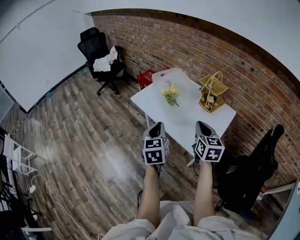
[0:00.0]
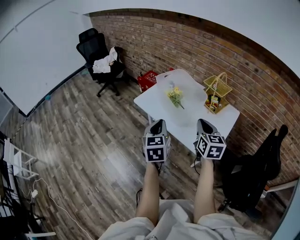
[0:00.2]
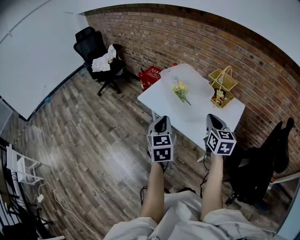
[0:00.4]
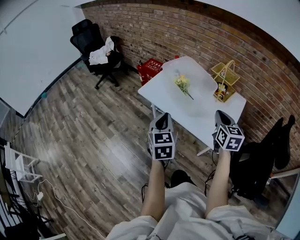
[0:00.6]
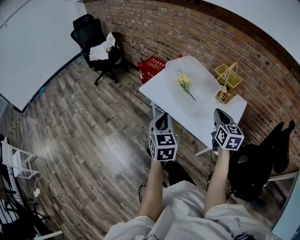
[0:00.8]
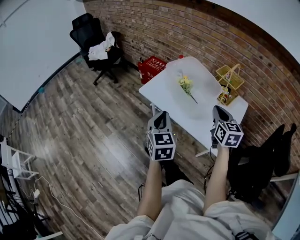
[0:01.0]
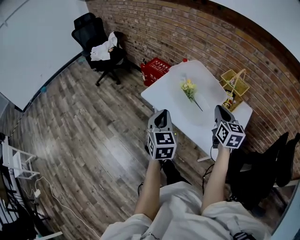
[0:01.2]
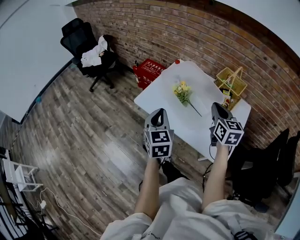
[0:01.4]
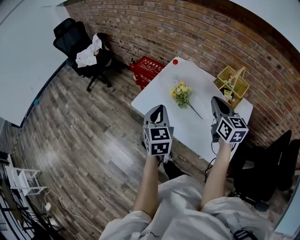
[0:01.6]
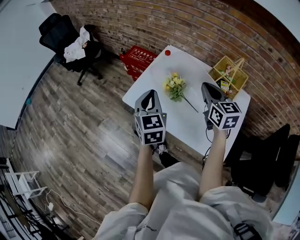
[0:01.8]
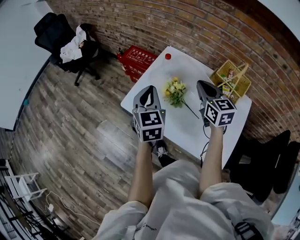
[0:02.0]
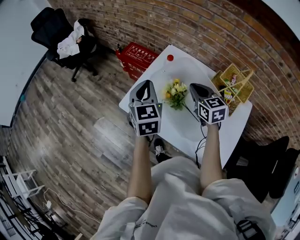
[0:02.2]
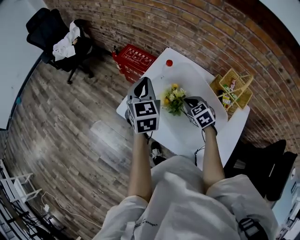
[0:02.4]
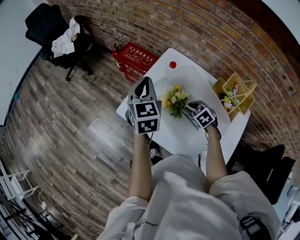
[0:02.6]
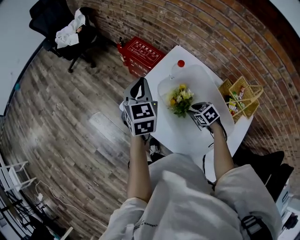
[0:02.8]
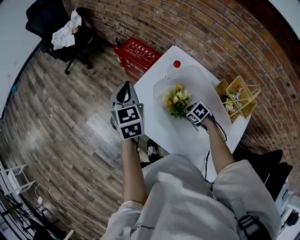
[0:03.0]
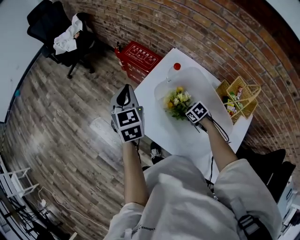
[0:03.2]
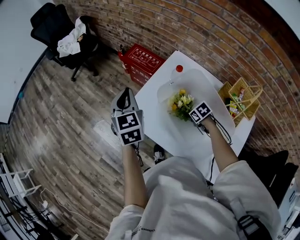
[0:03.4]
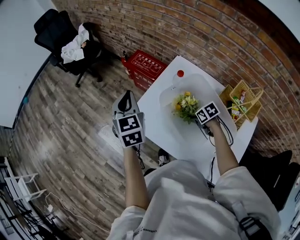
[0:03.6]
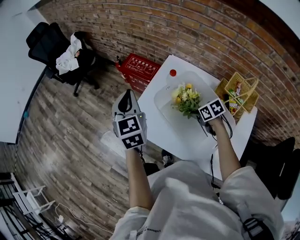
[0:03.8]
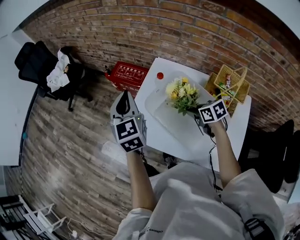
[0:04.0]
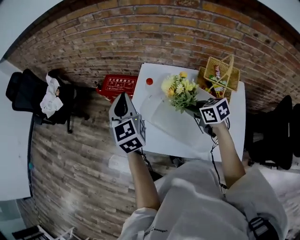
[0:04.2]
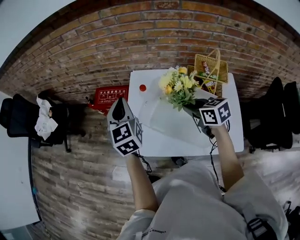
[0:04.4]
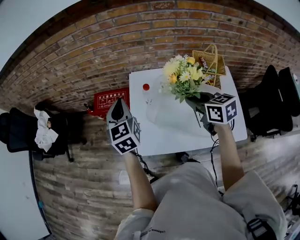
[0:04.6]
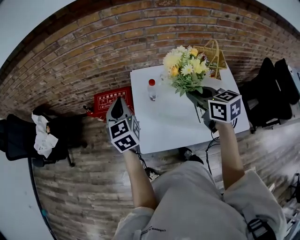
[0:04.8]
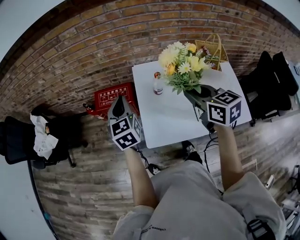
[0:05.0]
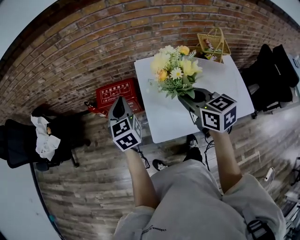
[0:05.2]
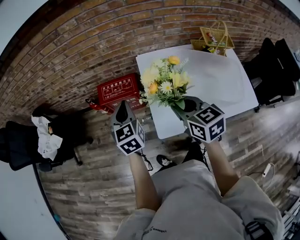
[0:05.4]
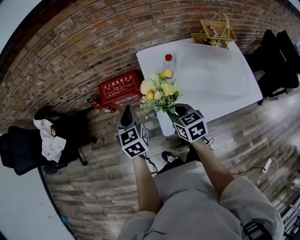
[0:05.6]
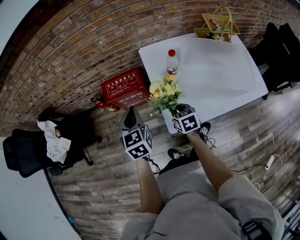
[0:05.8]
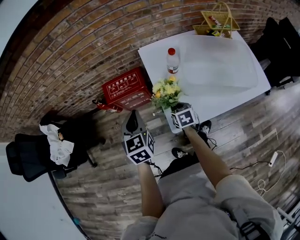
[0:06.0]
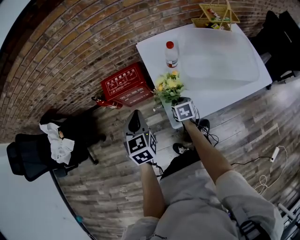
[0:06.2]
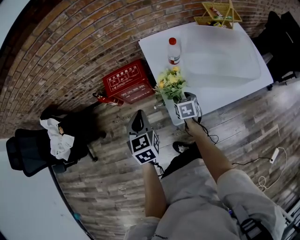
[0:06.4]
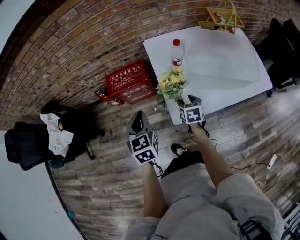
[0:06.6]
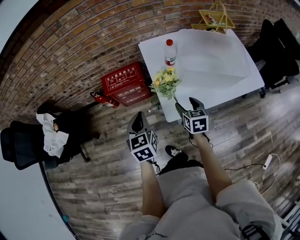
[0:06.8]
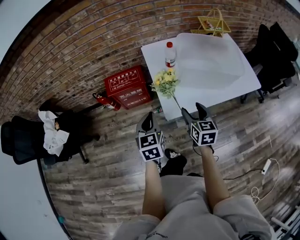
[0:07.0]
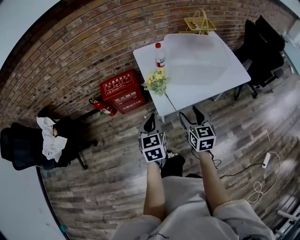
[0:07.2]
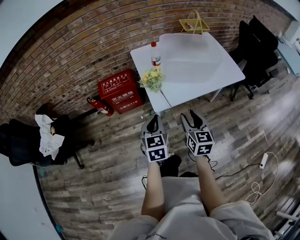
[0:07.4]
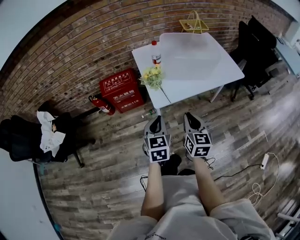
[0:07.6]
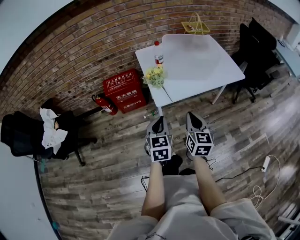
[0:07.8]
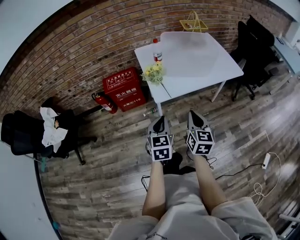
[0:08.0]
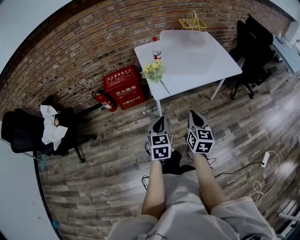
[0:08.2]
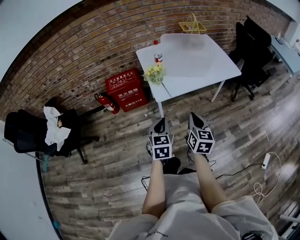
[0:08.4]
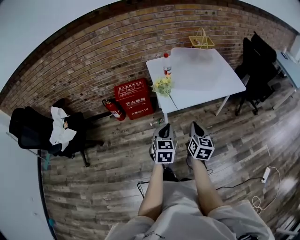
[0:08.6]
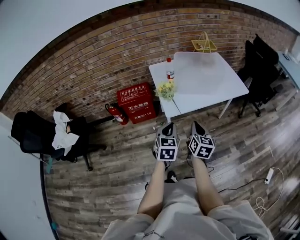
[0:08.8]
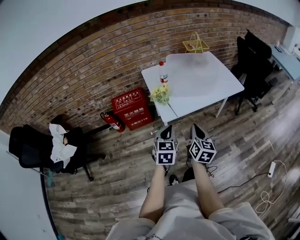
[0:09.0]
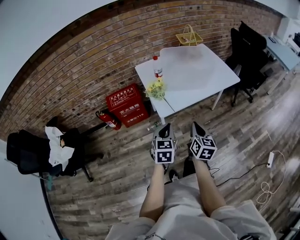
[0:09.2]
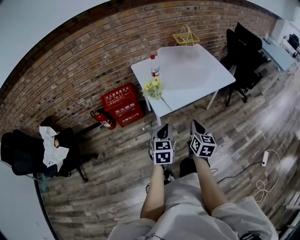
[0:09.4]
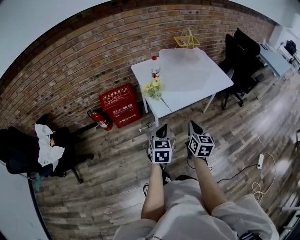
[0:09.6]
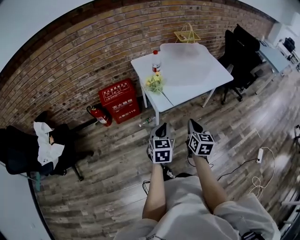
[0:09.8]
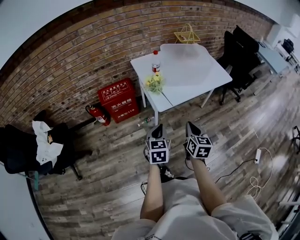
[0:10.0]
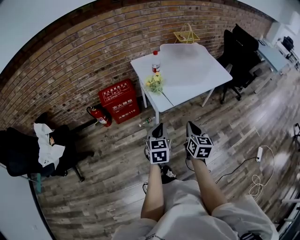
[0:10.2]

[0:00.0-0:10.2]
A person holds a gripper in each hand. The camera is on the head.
0:00.0 to 0:01.4: The right gripper shifts roughly 20 cm forward. The left gripper goes about 20 cm forward and to the left.
0:01.4 to 0:03.0: The left gripper ends up approximately 30 cm from where it was. Meanwhile the right gripper heads downward, covering about 35 cm, tips its fingers downward by roughly 60 degrees, and opens.
0:03.0 to 0:04.4: The right gripper shifts roughly 25 cm upward, points its fingers approximately 40 degrees further upward, and closes its fingers; the left gripper ends up roughly 15 cm from where it was, and swivels some 30 degrees.
0:04.4 to 0:05.8: The left gripper changes place by about 20 cm, and rotates about 20 degrees. The right gripper moves about 30 cm, and turns by about 30 degrees.
0:05.8 to 0:07.2: The right gripper travels backward and upward by approximately 25 cm, changes its angle by roughly 30 degrees, and opens up, while the left gripper shifts some 20 cm backward.
0:07.2 to 0:08.8: The left gripper heads backward and to the right, covering approximately 10 cm, while the right gripper moves backward, roughly 10 cm, and closes.
0:08.8 to 0:10.2: The left gripper travels to the left by approximately 5 cm. Meanwhile the right gripper moves approximately 5 cm.

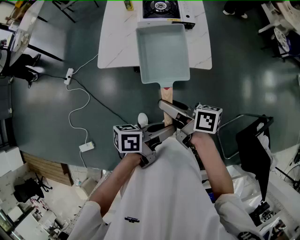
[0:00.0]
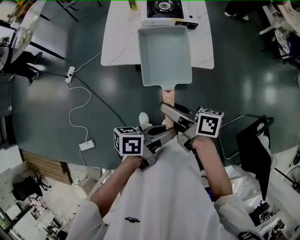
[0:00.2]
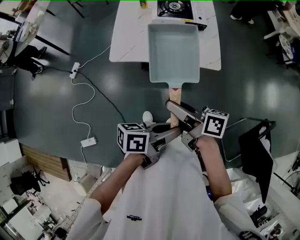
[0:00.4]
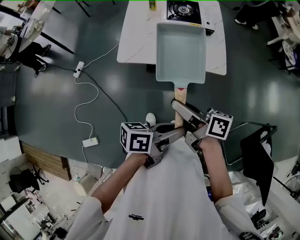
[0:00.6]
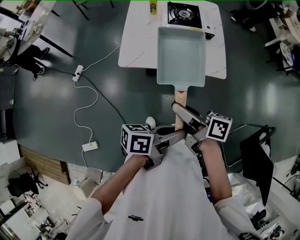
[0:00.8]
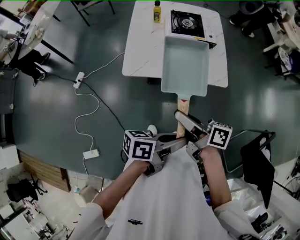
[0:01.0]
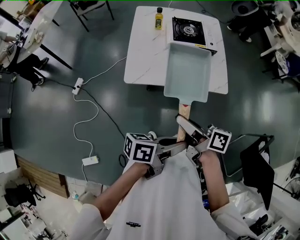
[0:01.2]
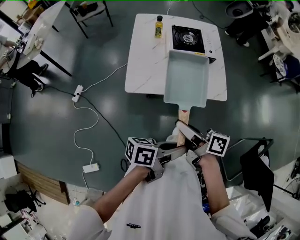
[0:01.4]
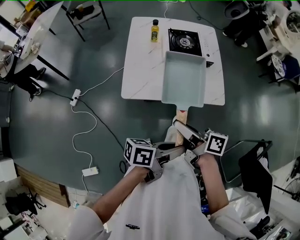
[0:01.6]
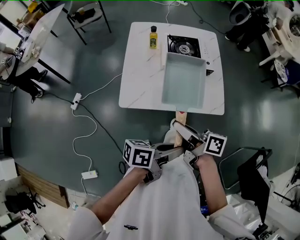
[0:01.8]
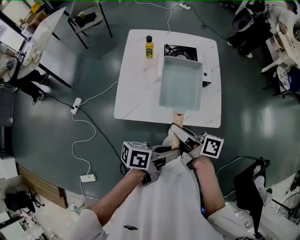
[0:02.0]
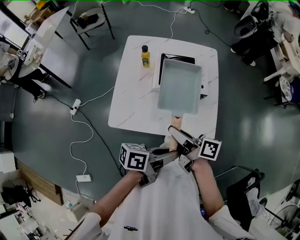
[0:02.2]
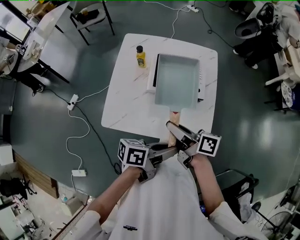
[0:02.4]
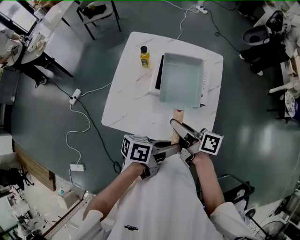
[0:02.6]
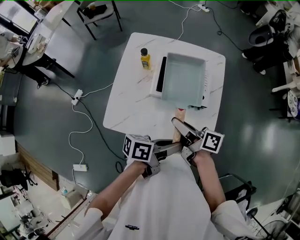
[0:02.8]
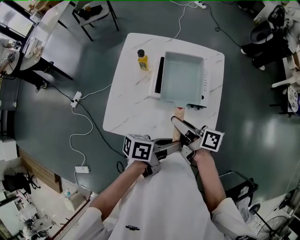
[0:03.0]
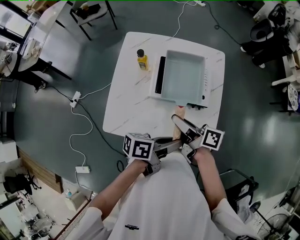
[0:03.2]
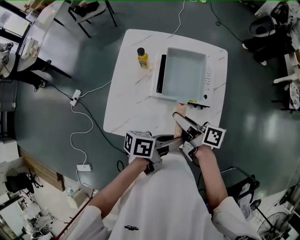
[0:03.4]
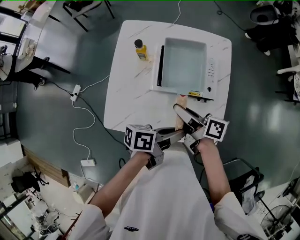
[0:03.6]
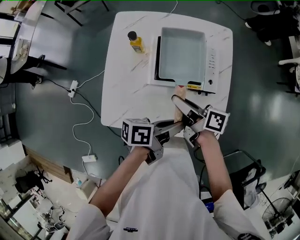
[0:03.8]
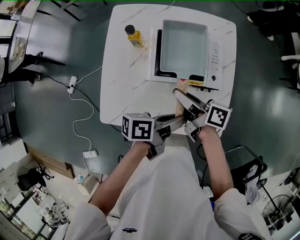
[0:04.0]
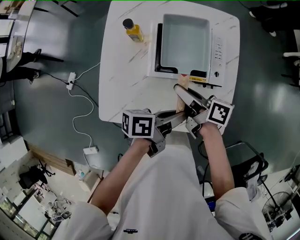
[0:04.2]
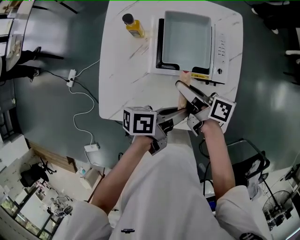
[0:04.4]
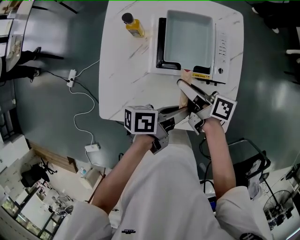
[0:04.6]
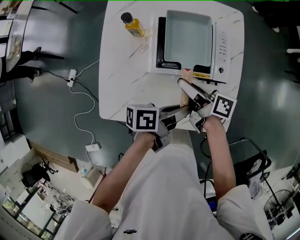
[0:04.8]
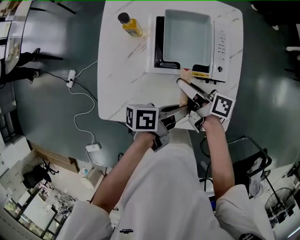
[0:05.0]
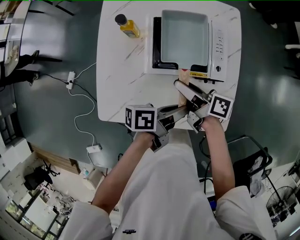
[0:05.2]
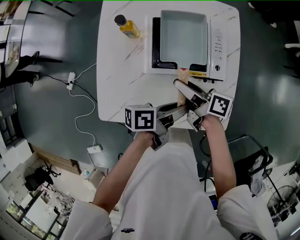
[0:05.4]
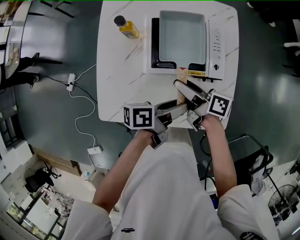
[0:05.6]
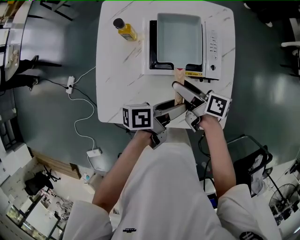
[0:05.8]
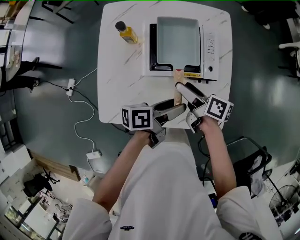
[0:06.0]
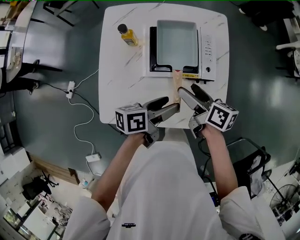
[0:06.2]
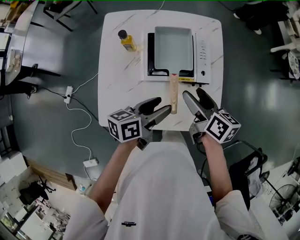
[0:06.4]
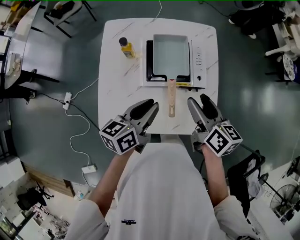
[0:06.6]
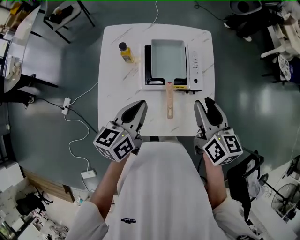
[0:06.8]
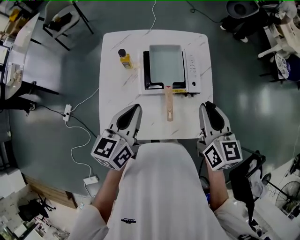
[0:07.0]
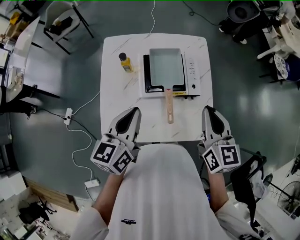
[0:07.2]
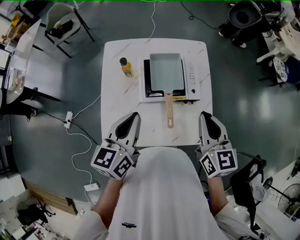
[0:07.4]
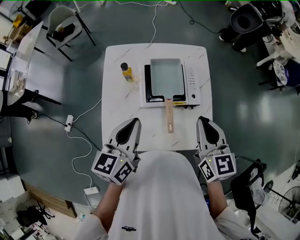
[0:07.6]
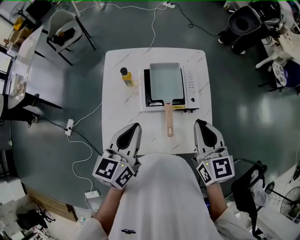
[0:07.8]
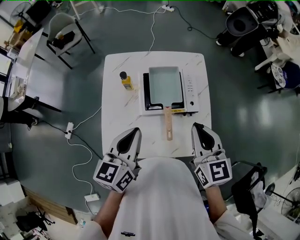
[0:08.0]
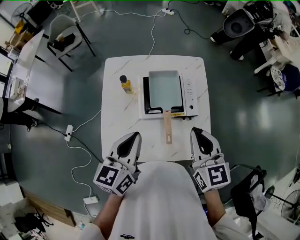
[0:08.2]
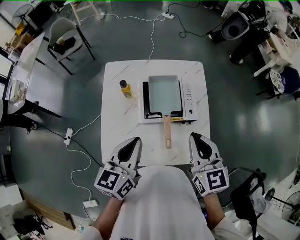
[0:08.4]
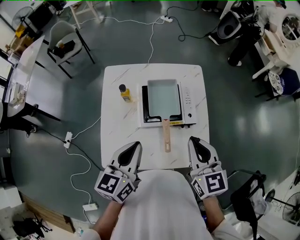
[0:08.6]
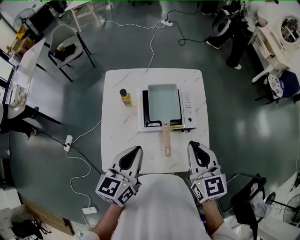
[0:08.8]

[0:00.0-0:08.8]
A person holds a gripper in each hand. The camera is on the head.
0:00.0 to 0:01.4: Both grippers move to the left, approximately 10 cm.
0:01.4 to 0:03.0: Both grippers travel together forward, some 35 cm.
0:03.0 to 0:04.4: Both grippers move downward and forward, roughly 15 cm.
0:04.4 to 0:05.8: The right gripper opens. Meanwhile the left gripper opens up.
0:05.8 to 0:07.4: The left gripper moves upward and to the left, some 25 cm, rolls clockwise, seen from behind, by approximately 50 degrees, and closes; the right gripper goes about 25 cm upward and to the right, rotates around the line of its fingers by approximately 60 degrees, counterclockwise from behind, and closes.
0:07.4 to 0:08.8: The grippers move only a little.

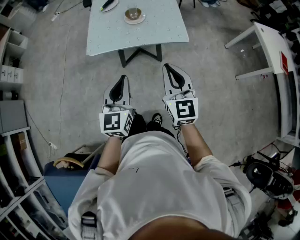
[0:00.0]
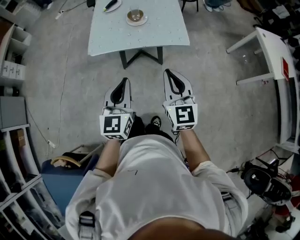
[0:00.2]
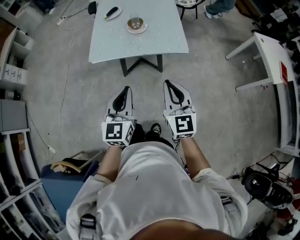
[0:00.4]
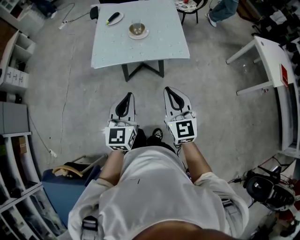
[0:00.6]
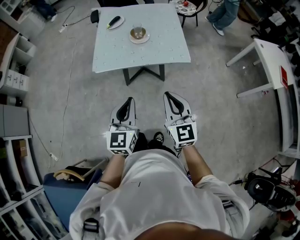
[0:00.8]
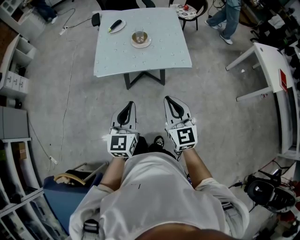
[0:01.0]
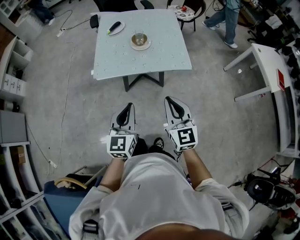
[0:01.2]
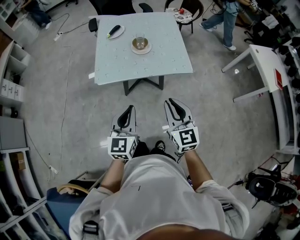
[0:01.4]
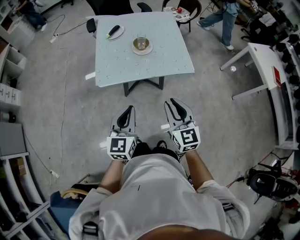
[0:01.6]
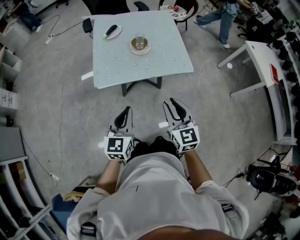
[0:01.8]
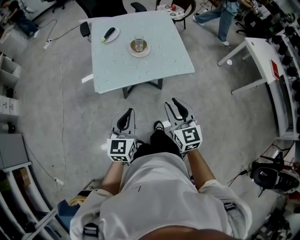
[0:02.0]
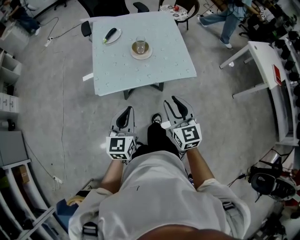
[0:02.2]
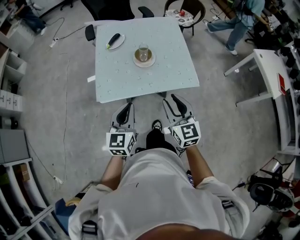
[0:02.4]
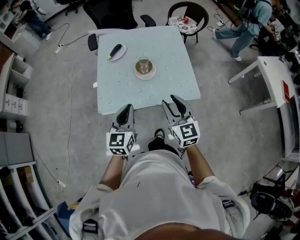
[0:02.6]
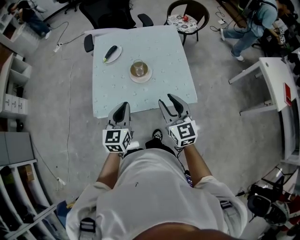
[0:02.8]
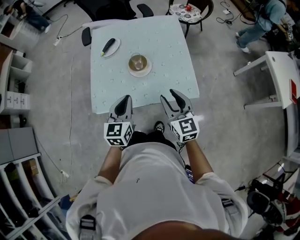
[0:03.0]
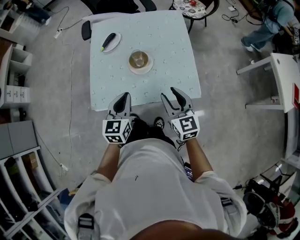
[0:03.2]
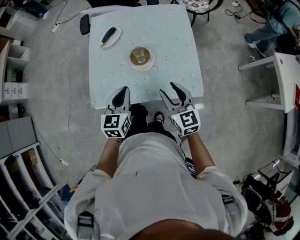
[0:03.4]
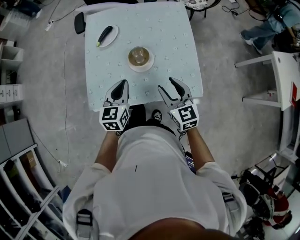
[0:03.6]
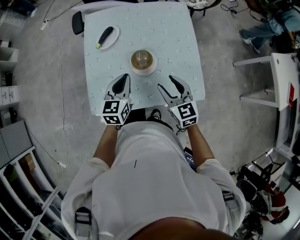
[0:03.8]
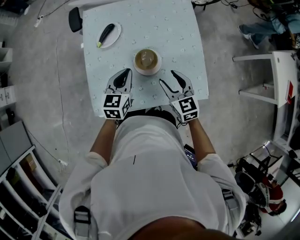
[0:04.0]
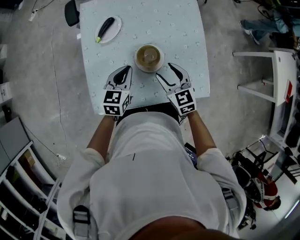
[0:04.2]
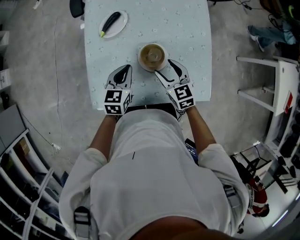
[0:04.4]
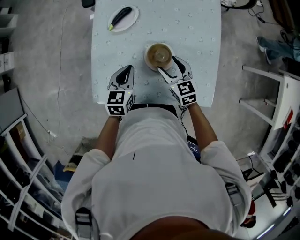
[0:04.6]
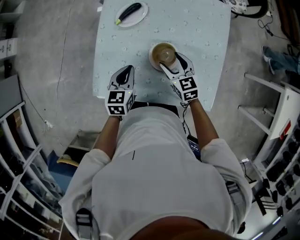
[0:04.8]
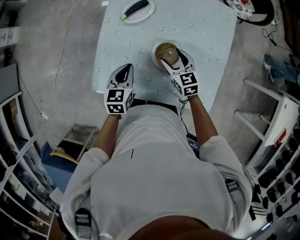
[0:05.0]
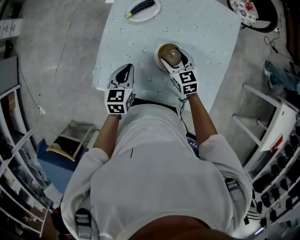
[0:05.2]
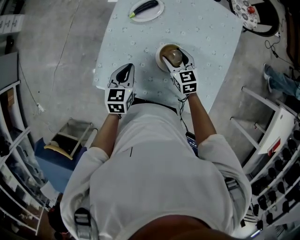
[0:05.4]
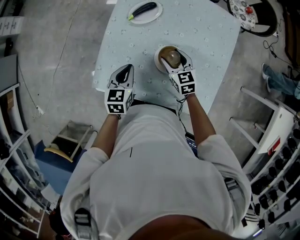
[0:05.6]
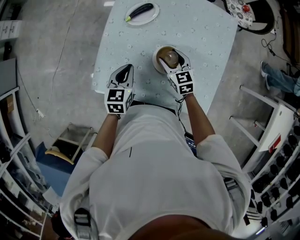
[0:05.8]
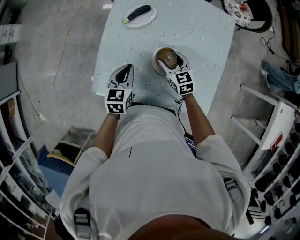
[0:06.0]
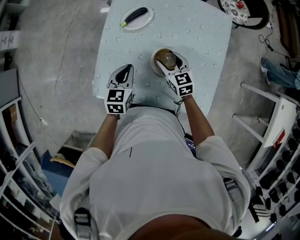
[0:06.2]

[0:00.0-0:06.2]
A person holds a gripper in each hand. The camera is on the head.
0:00.0 to 0:01.6: The right gripper travels to the left by some 10 cm. Meanwhile the left gripper shifts approximately 10 cm to the left and forward.
0:01.6 to 0:03.2: Both grippers travel together forward, approximately 30 cm.
0:03.2 to 0:04.6: Both grippers move forward, downward and to the left, approximately 25 cm. The right gripper swivels about 20 degrees, and opens.
0:04.6 to 0:06.2: The right gripper shifts roughly 5 cm forward.
